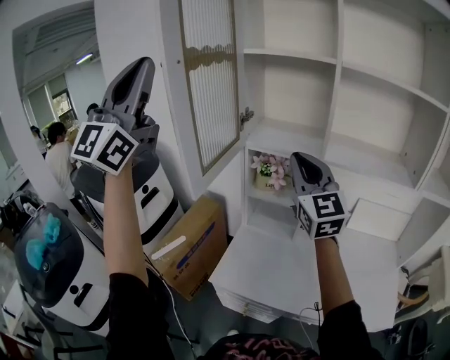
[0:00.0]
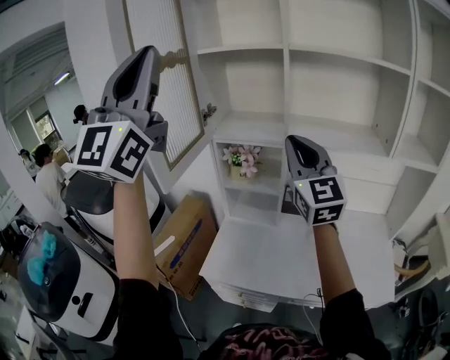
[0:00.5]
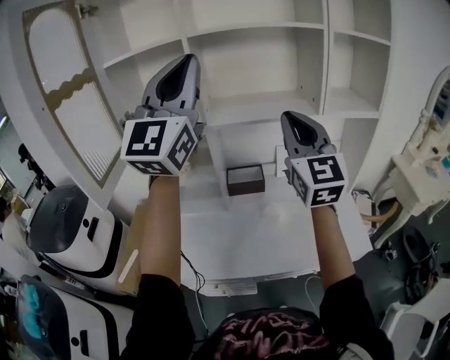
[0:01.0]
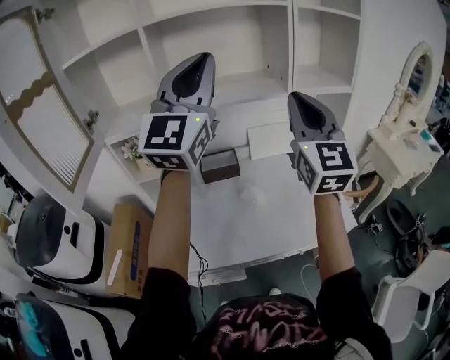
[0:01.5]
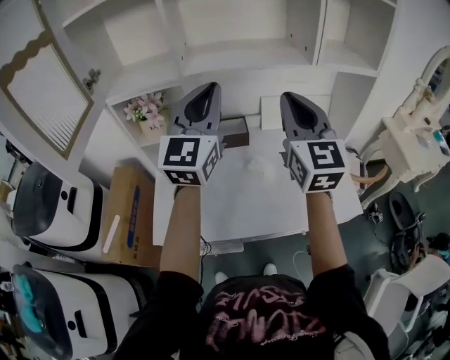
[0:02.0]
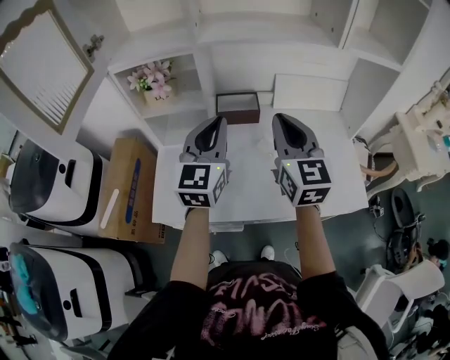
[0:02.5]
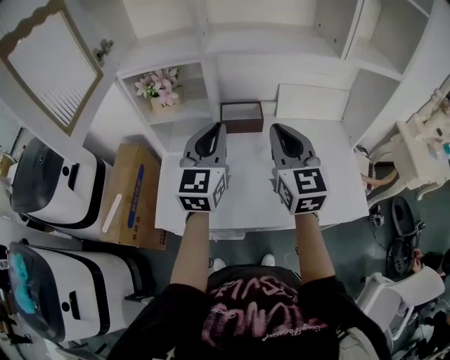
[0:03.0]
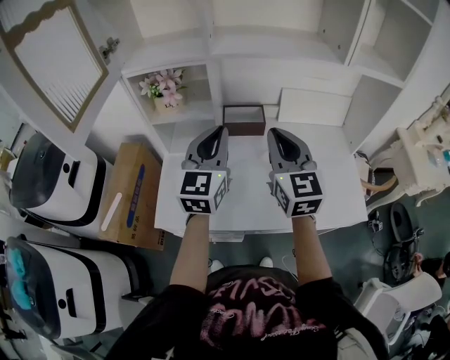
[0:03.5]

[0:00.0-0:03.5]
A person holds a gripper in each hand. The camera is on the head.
0:00.0 to 0:02.0: The right gripper moves about 30 cm, and swivels roughly 30 degrees. The left gripper ends up about 50 cm from where it was, and swivels roughly 40 degrees.
0:02.0 to 0:03.5: The grippers both shift downward and to the left by some 15 cm.

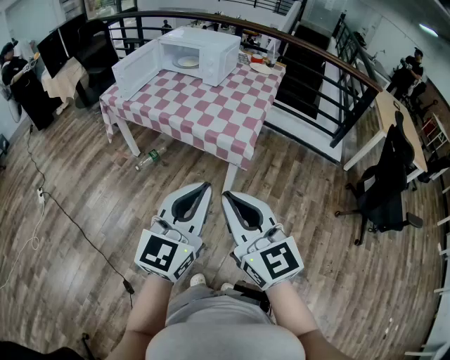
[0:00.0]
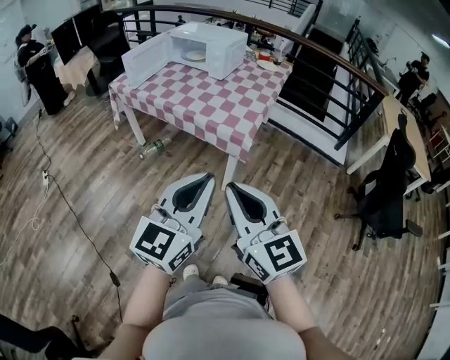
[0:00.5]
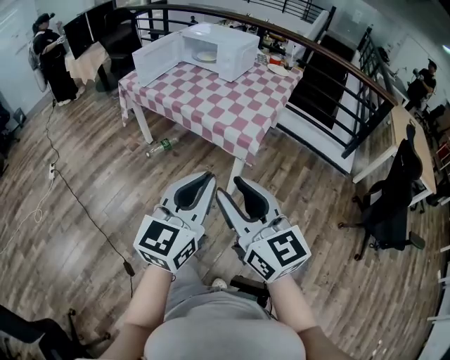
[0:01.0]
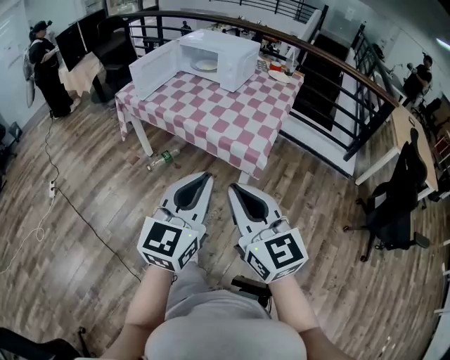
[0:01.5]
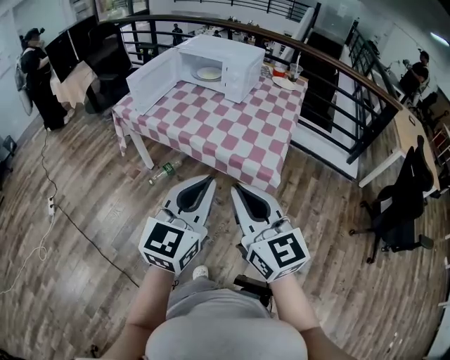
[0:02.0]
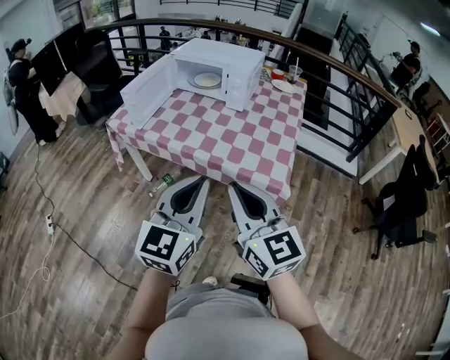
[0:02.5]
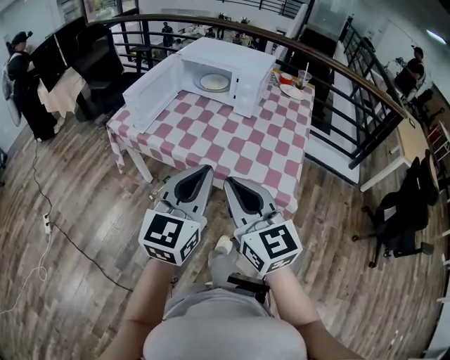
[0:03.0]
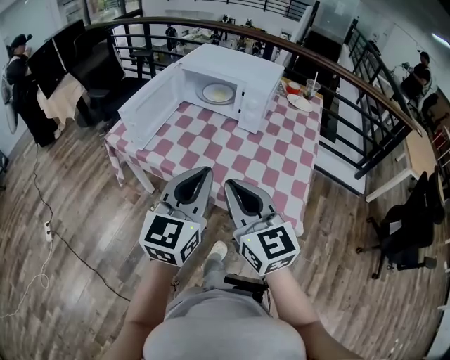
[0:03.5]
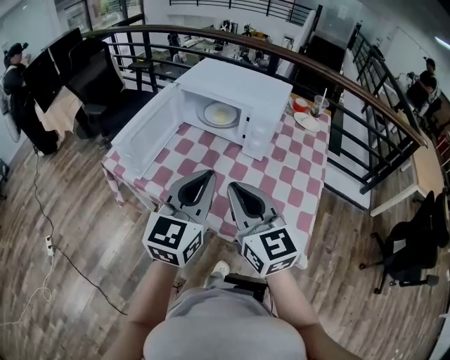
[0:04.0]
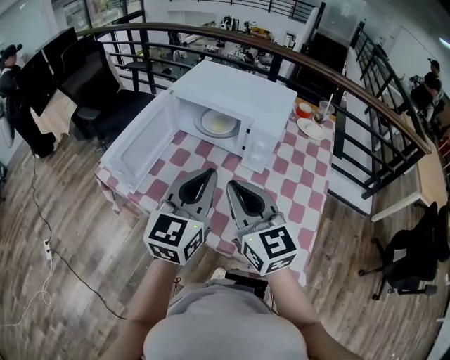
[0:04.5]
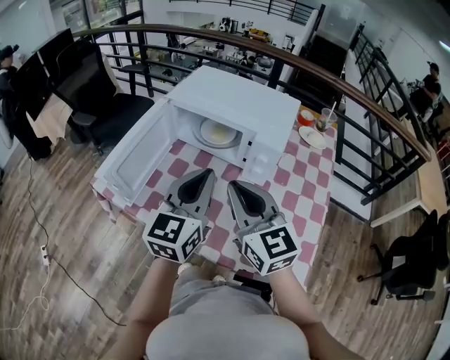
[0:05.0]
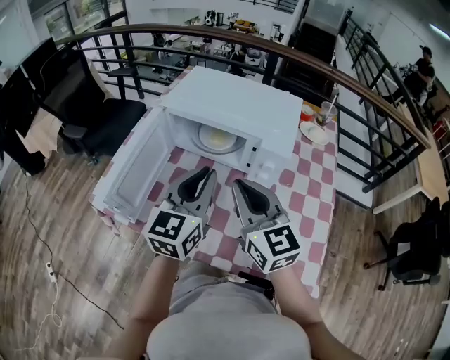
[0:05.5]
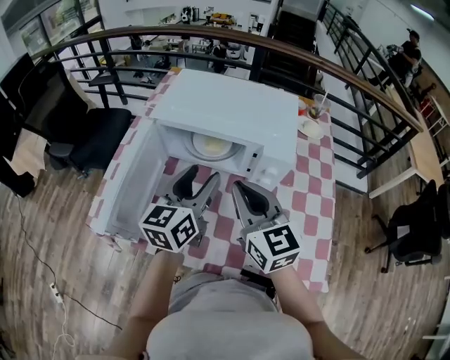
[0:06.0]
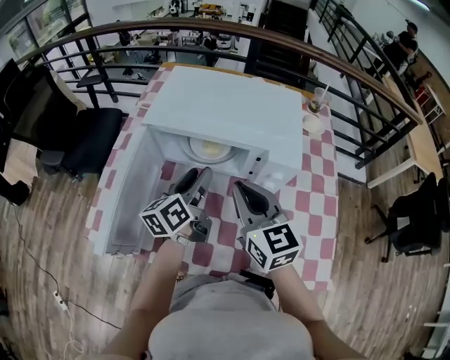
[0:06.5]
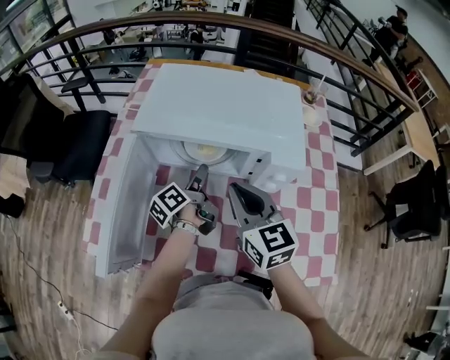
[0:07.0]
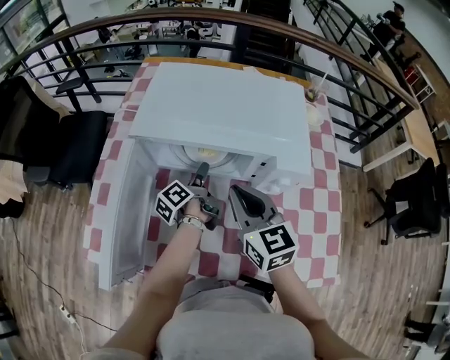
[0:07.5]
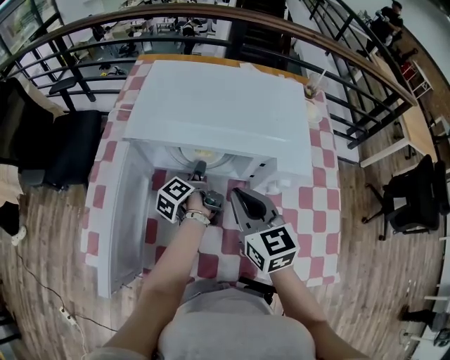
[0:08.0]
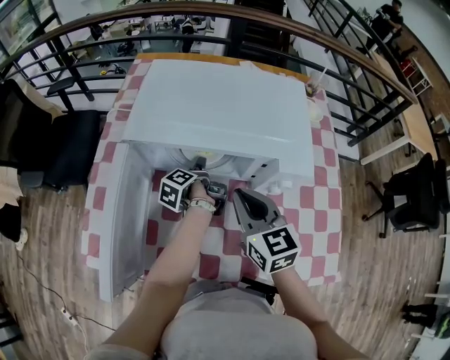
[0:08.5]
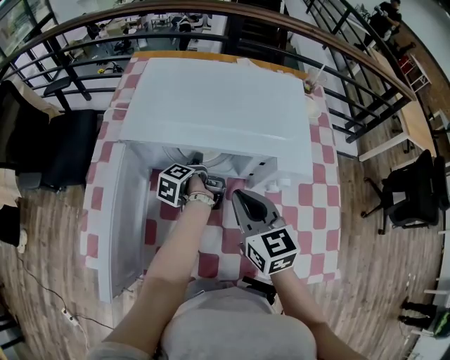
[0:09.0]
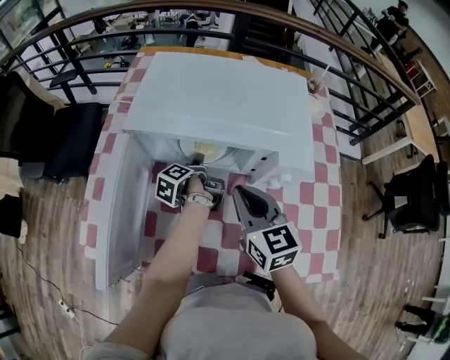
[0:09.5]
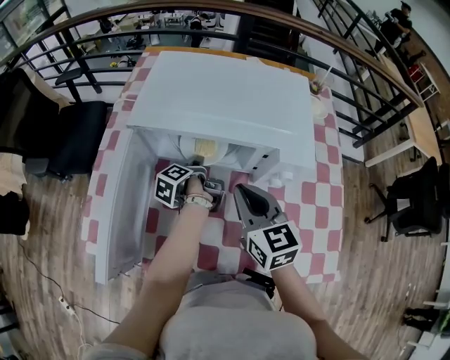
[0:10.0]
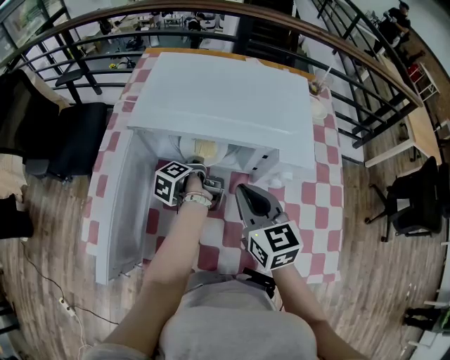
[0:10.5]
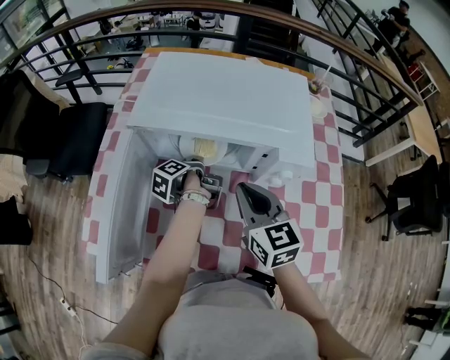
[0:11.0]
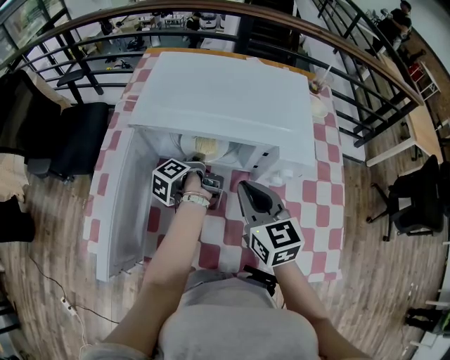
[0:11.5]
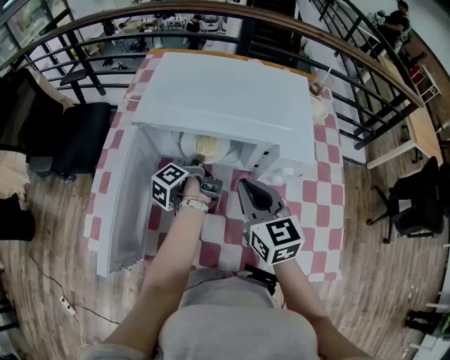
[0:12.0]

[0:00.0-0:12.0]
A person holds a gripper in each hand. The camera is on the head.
0:00.0 to 0:02.0: The left gripper is displaced forward and to the left by approximately 15 cm; the right gripper travels forward by some 15 cm, and opens, then closes once more.
0:02.0 to 0:04.0: Both grippers travel together forward, roughly 40 cm.
0:04.0 to 0:06.0: The two grippers go some 25 cm forward. The left gripper rotates some 20 degrees, and opens its fingers.
0:06.0 to 0:08.0: The right gripper goes some 10 cm downward and forward. The left gripper shifts some 30 cm downward and forward, and twists approximately 70 degrees counterclockwise, seen from behind.
0:08.0 to 0:10.0: There are only small adjustments of the grippers.
0:10.0 to 0:12.0: The left gripper closes up.

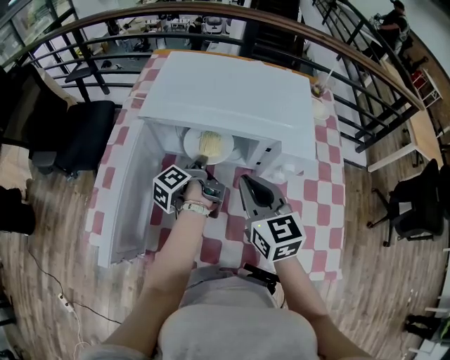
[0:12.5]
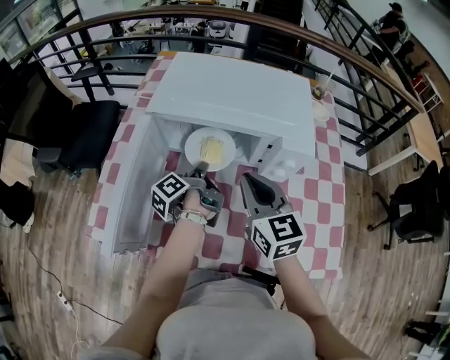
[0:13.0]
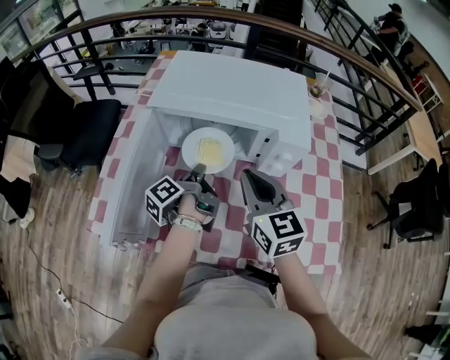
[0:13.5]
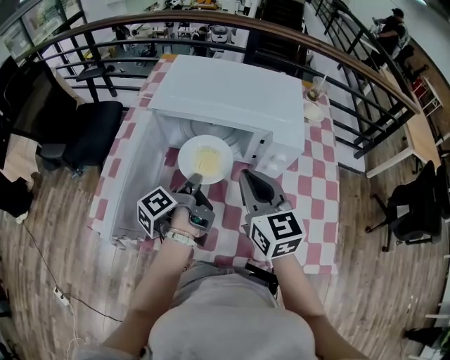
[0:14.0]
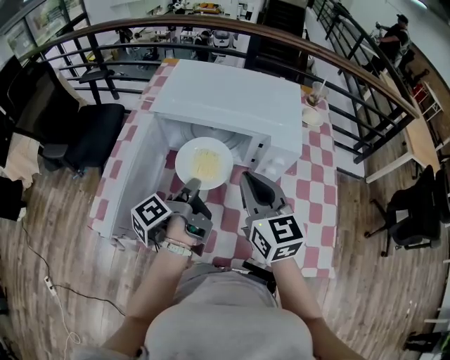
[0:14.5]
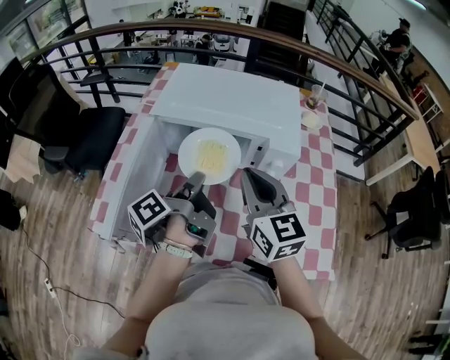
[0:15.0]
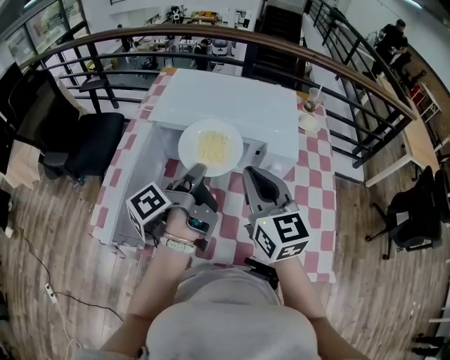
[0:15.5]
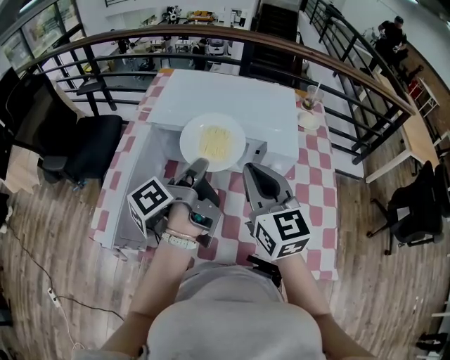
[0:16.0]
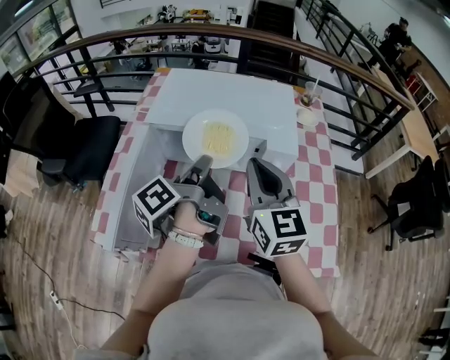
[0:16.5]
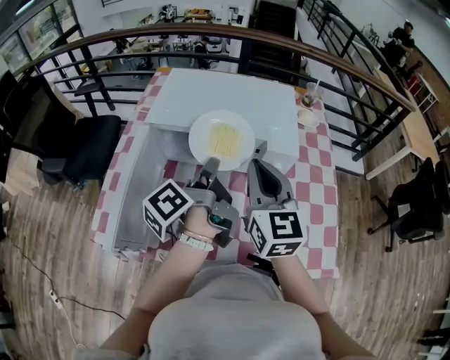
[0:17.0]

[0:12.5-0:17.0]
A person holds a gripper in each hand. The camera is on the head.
0:12.5 to 0:14.5: The right gripper is displaced upward by roughly 5 cm. Meanwhile the left gripper moves backward and upward, roughly 15 cm.
0:14.5 to 0:17.0: The right gripper ends up some 5 cm from where it was; the left gripper travels upward by roughly 10 cm.

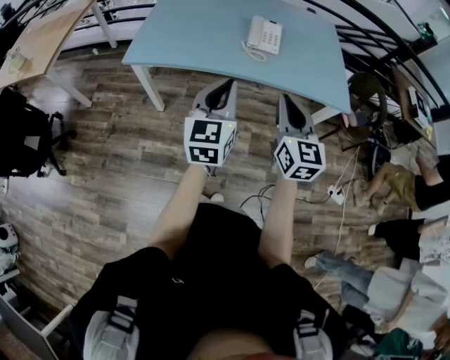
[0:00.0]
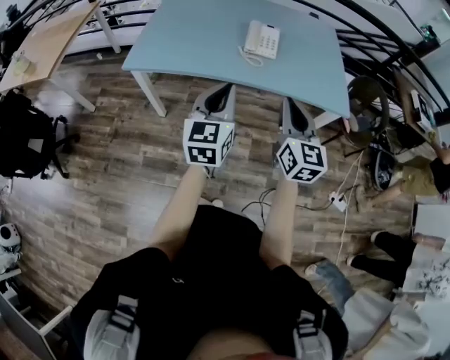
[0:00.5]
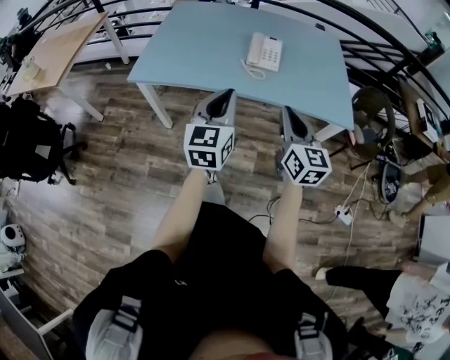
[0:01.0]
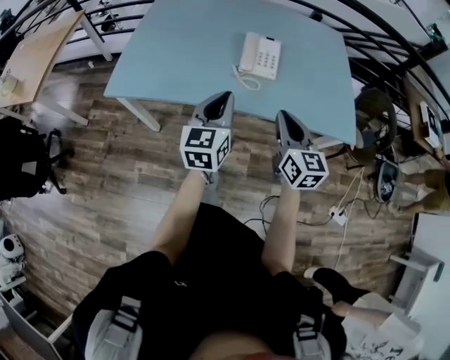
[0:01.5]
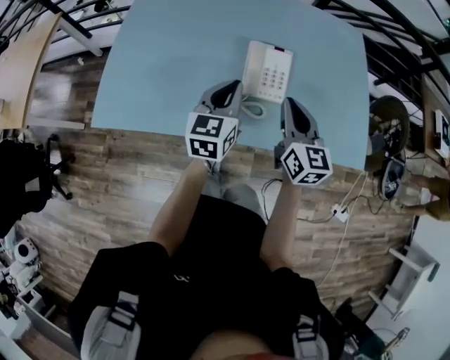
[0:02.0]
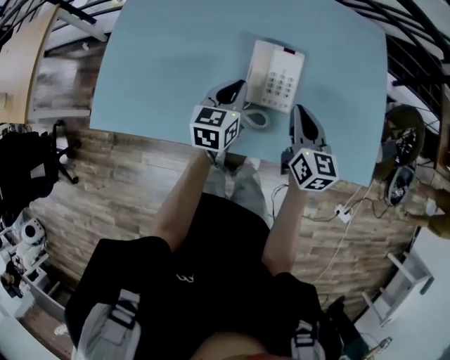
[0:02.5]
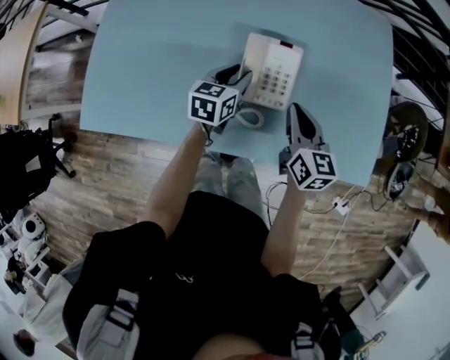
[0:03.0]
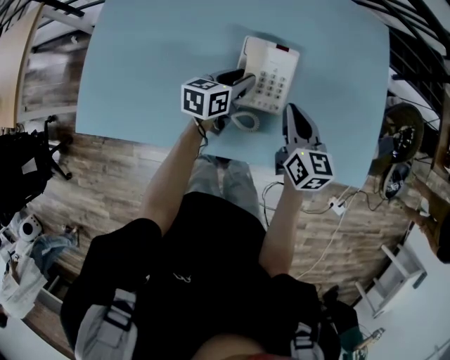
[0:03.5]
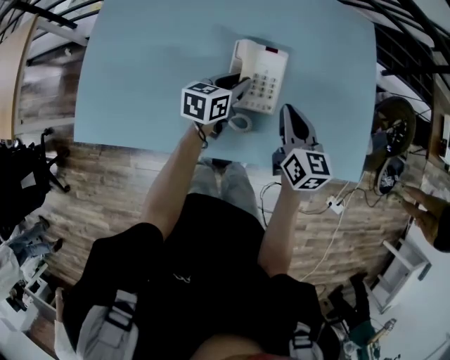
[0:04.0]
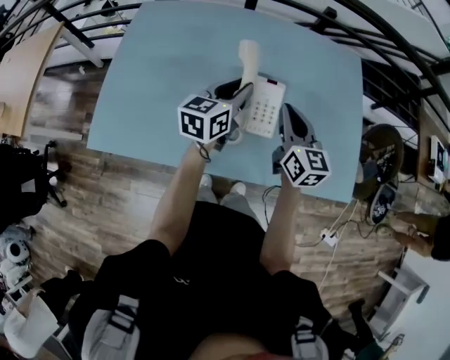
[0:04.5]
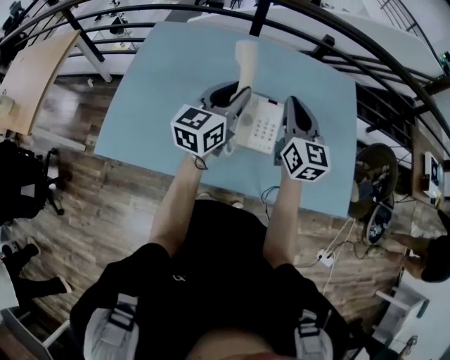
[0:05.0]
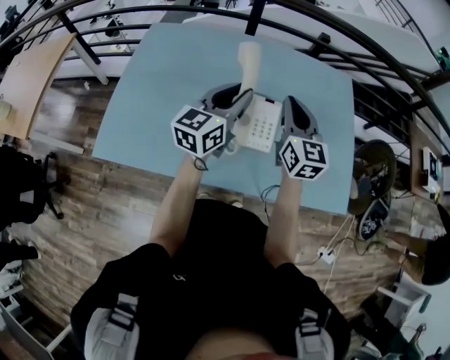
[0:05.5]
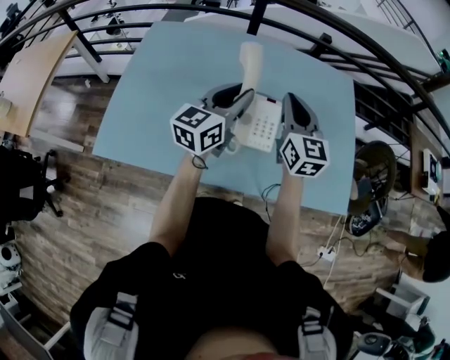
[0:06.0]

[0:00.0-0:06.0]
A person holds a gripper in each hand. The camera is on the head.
0:00.0 to 0:02.0: The pair of grippers is taken forward, roughly 40 cm.
0:02.0 to 0:04.0: The right gripper moves forward and downward, about 10 cm. Meanwhile the left gripper shifts roughly 20 cm downward, forward and to the right, swivels roughly 30 degrees, and opens its fingers.
0:04.0 to 0:06.0: Both grippers move upward, roughly 20 cm. The left gripper swivels roughly 30 degrees; the right gripper swivels approximately 30 degrees.
